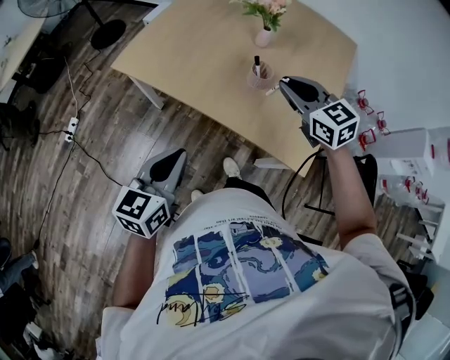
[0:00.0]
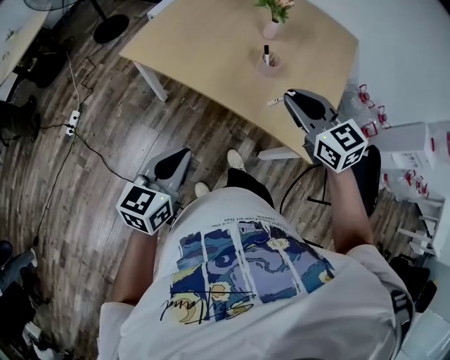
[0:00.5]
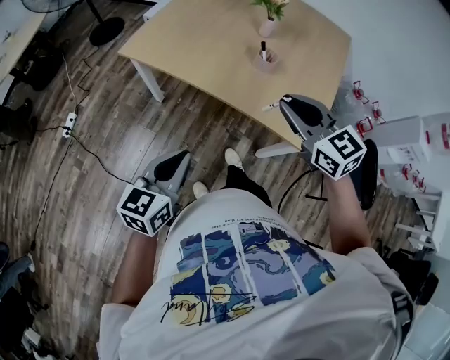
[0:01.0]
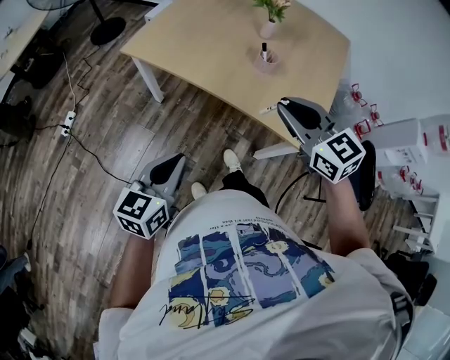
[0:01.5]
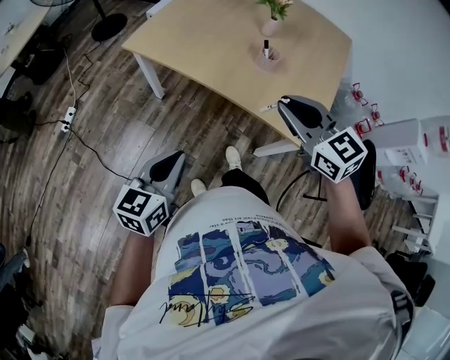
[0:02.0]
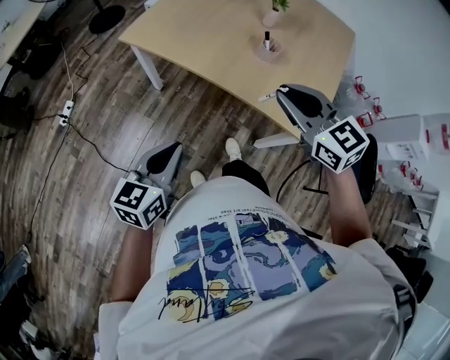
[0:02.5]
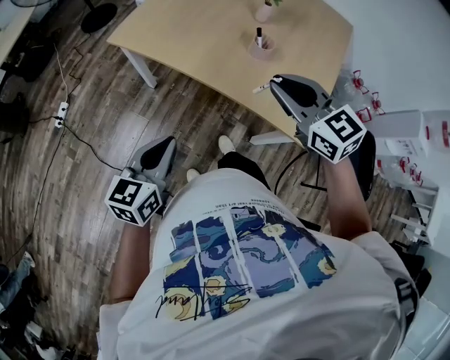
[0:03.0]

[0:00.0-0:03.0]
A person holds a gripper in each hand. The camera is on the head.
0:00.0 to 0:01.5: The left gripper goes approximately 10 cm backward and to the left. Meanwhile the right gripper shifts approximately 20 cm backward and to the left.
0:01.5 to 0:03.0: The right gripper moves forward, roughly 5 cm. The left gripper ends up about 5 cm from where it was.

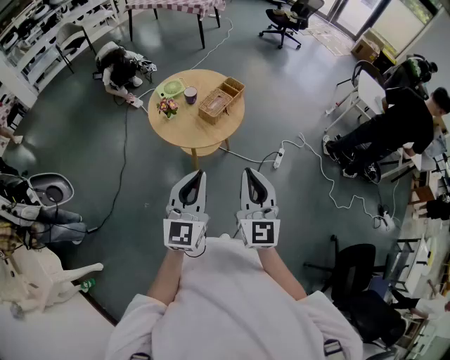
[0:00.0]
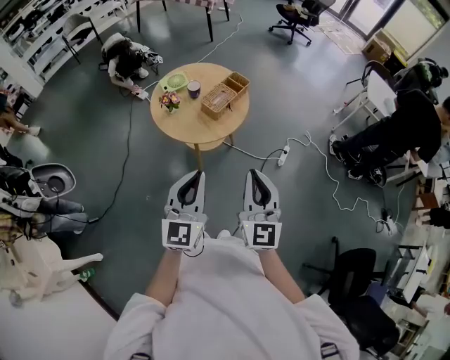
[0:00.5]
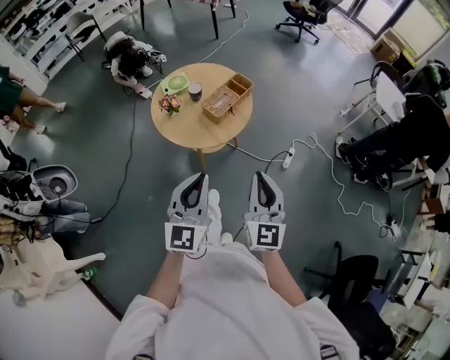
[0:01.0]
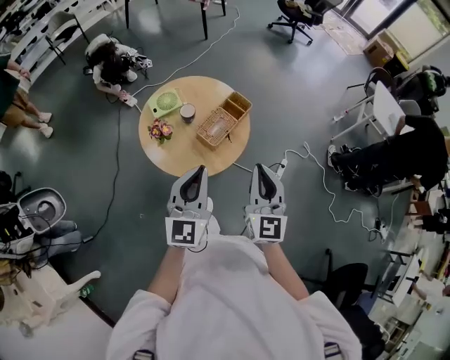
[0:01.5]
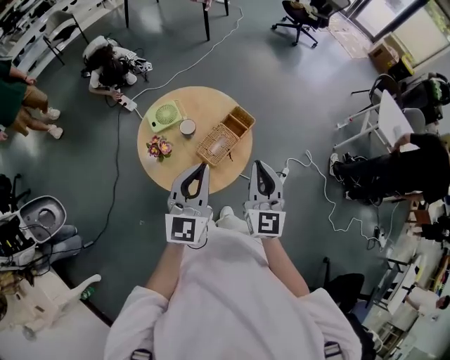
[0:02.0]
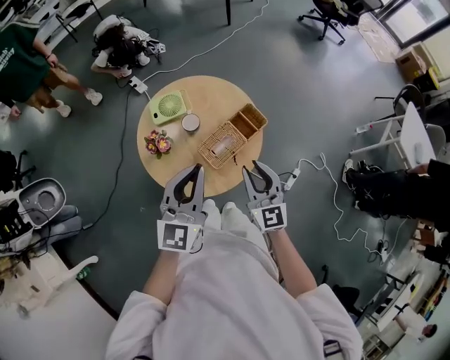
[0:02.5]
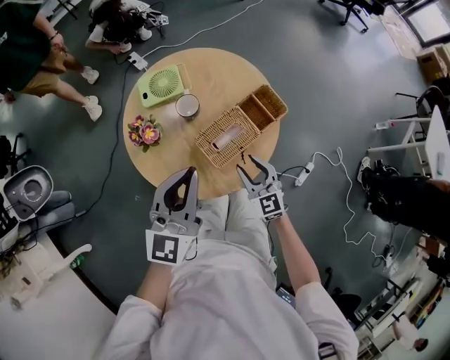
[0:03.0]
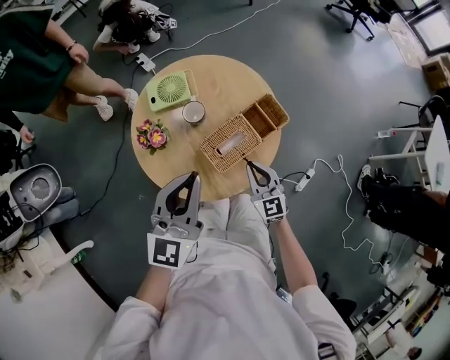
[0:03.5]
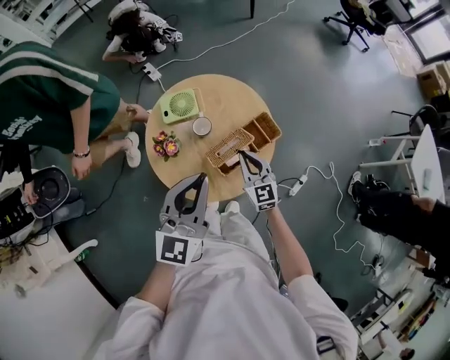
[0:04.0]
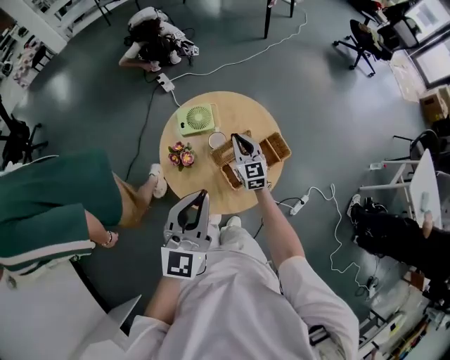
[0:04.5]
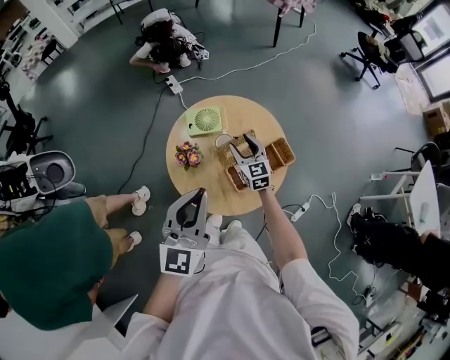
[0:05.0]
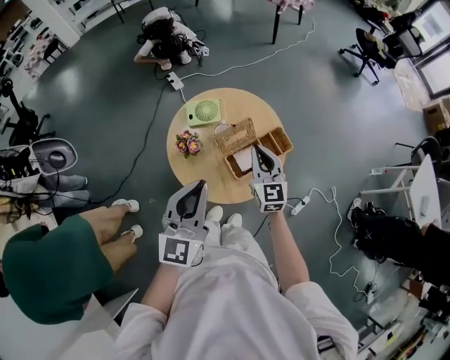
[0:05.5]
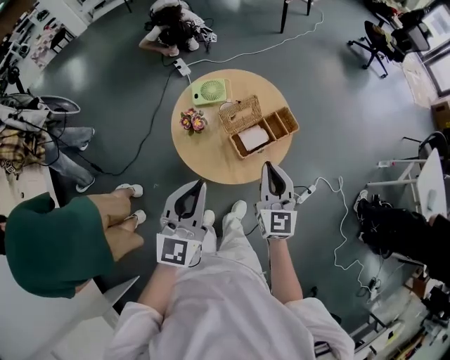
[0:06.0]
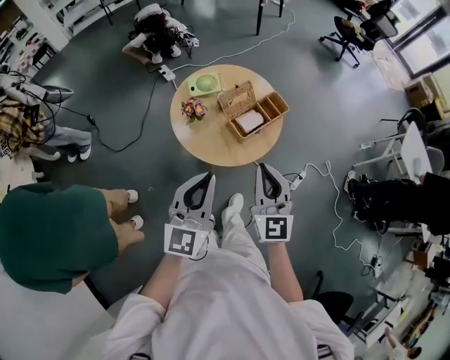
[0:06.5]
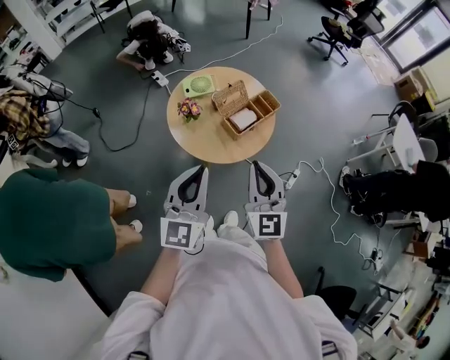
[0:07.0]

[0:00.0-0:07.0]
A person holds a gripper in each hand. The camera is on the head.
0:00.0 to 0:02.0: Both grippers travel together forward, some 35 cm.
0:02.0 to 0:03.5: The right gripper is displaced downward by about 35 cm, changes its angle by about 40 degrees, and opens, then closes once more. Meanwhile the left gripper shifts some 15 cm downward and forward.
0:03.5 to 0:05.0: The left gripper shifts approximately 15 cm upward and to the left, while the right gripper shifts some 25 cm forward, to the left and upward, and opens its fingers.
0:05.0 to 0:07.0: The right gripper is displaced backward and upward by about 50 cm, changes its angle by approximately 30 degrees, and closes, while the left gripper shifts some 20 cm backward.

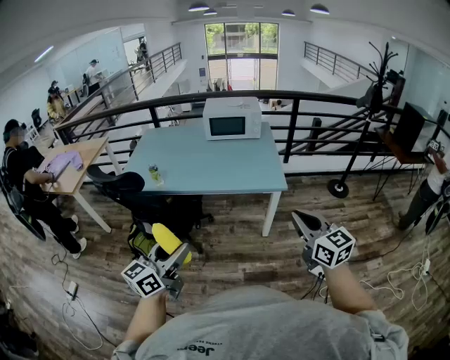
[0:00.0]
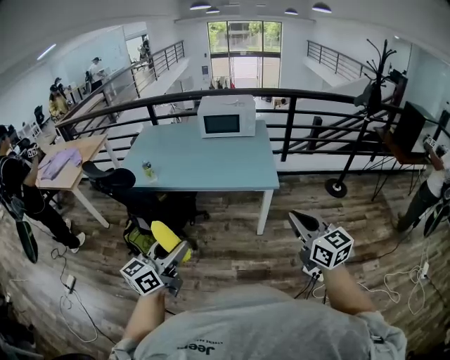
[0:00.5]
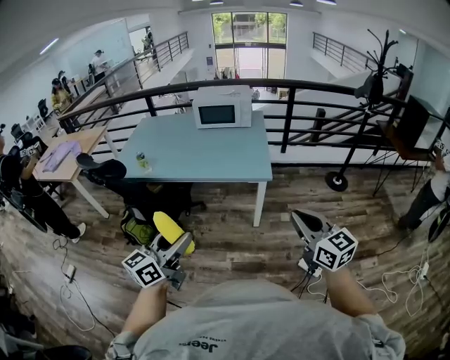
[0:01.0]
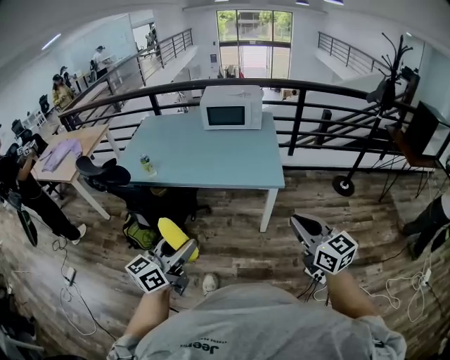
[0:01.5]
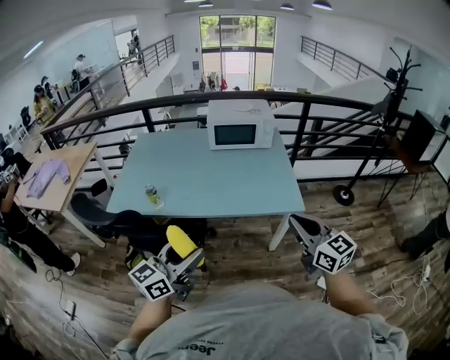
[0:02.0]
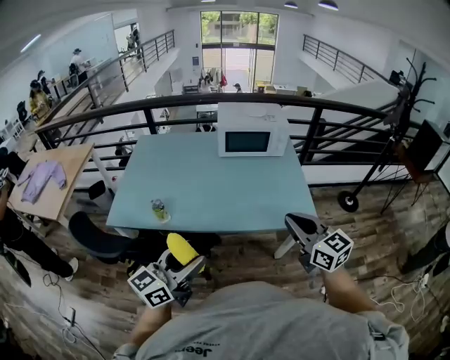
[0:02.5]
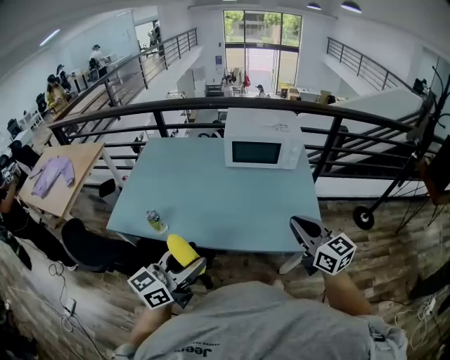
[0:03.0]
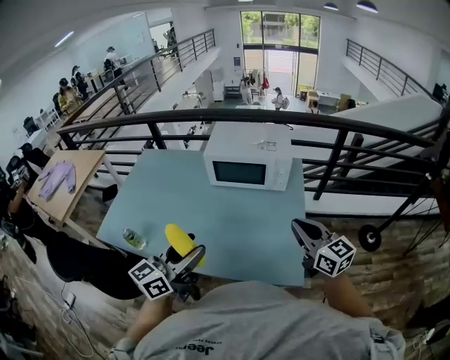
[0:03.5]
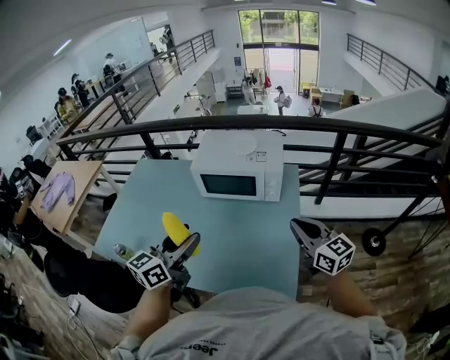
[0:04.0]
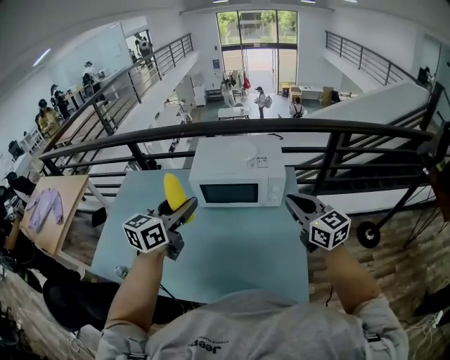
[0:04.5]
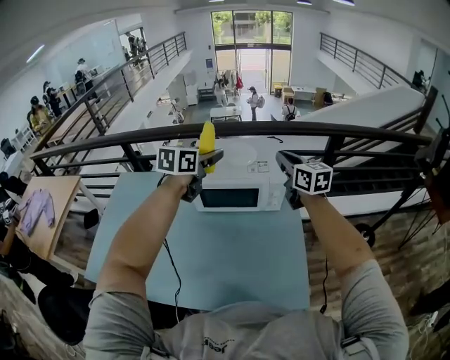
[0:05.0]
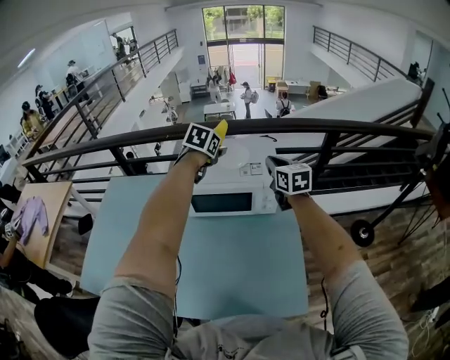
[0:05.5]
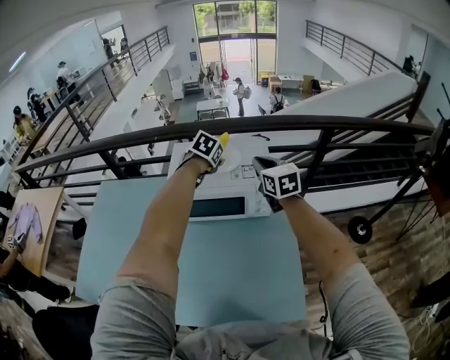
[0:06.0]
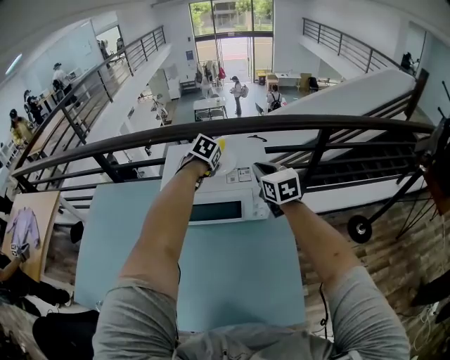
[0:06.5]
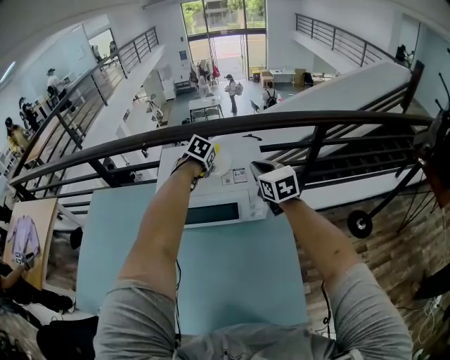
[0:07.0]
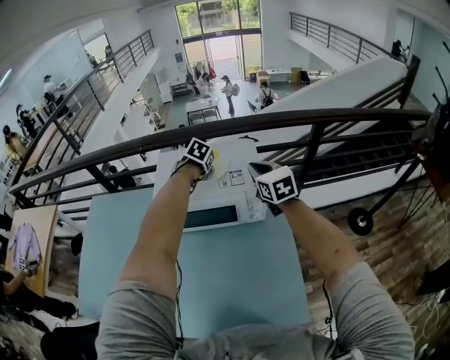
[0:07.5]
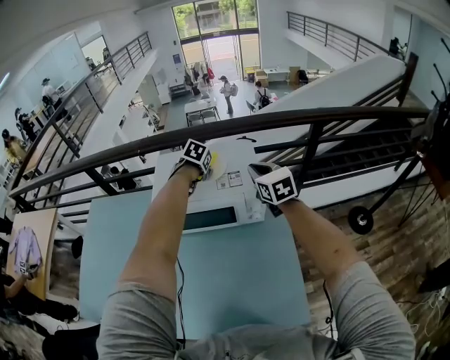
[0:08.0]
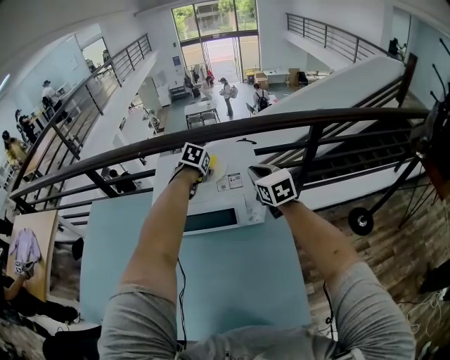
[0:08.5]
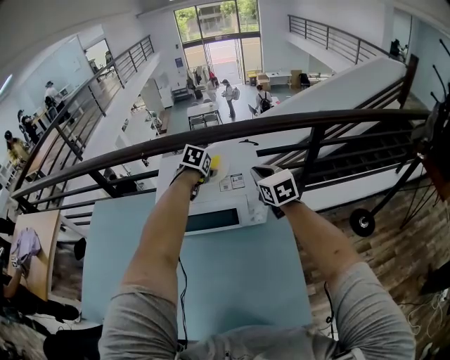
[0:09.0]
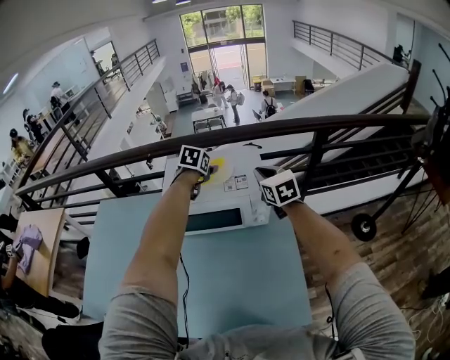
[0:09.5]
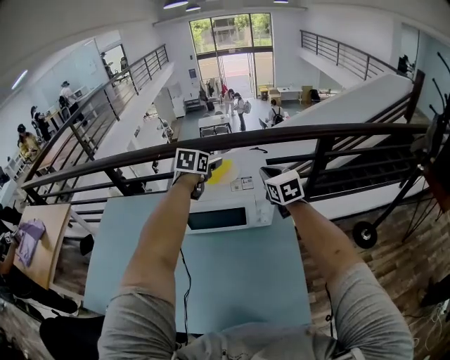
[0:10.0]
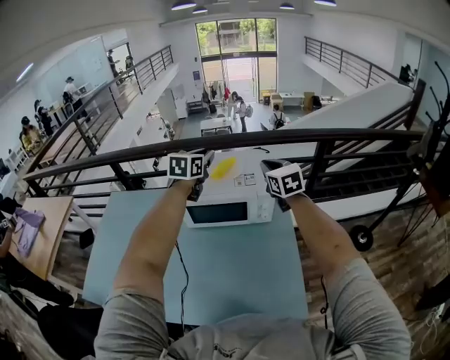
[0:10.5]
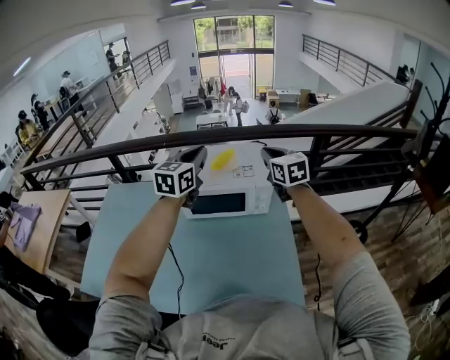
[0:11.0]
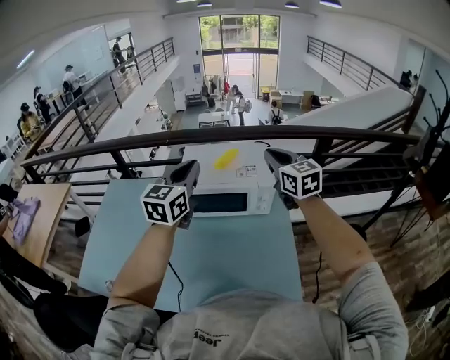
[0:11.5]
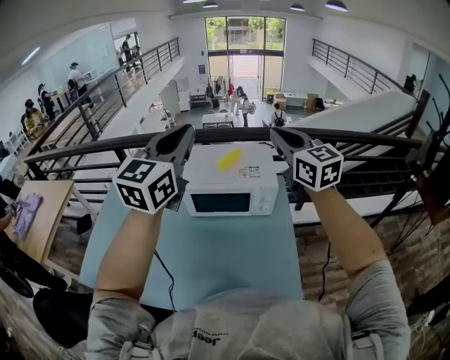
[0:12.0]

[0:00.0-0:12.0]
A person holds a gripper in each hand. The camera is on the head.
0:00.0 to 0:02.0: The right gripper heads forward and to the left, covering approximately 20 cm. Meanwhile the left gripper travels forward by roughly 20 cm.
0:02.0 to 0:04.0: Both grippers are carried forward, some 50 cm.
0:04.0 to 0:06.0: The grippers both shift forward by some 40 cm. The right gripper rotates about 20 degrees. The left gripper tips its fingers downward by some 50 degrees.
0:06.0 to 0:08.0: The right gripper ends up approximately 5 cm from where it was. The left gripper travels downward by some 5 cm.
0:08.0 to 0:10.0: The left gripper heads upward, covering some 15 cm, and points its fingers some 30 degrees further upward; the right gripper ends up some 5 cm from where it was.
0:10.0 to 0:12.0: The left gripper is displaced backward and upward by some 40 cm, angles its fingers upward, by approximately 40 degrees, and closes. Meanwhile the right gripper goes some 25 cm upward and backward, and swivels approximately 20 degrees.

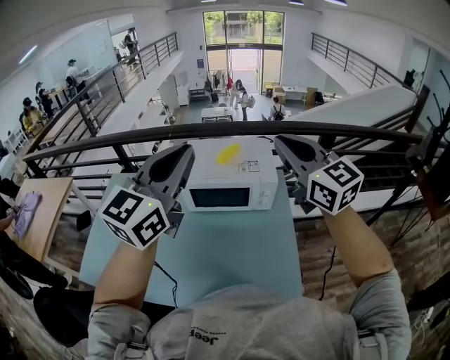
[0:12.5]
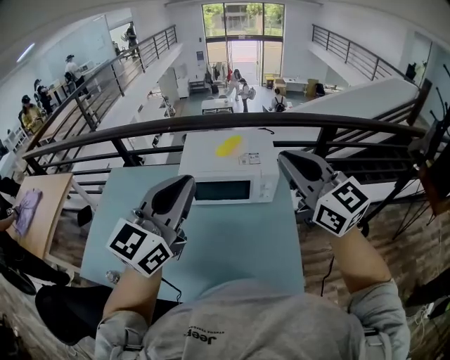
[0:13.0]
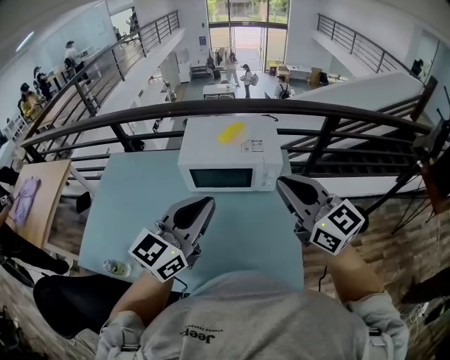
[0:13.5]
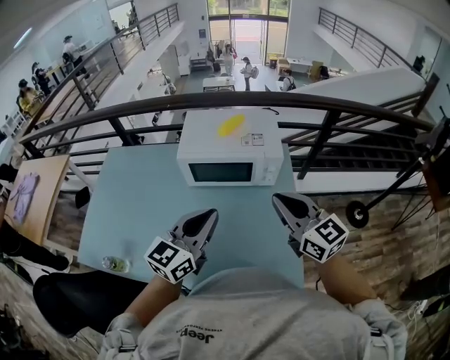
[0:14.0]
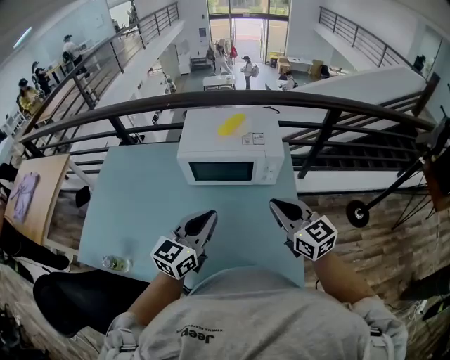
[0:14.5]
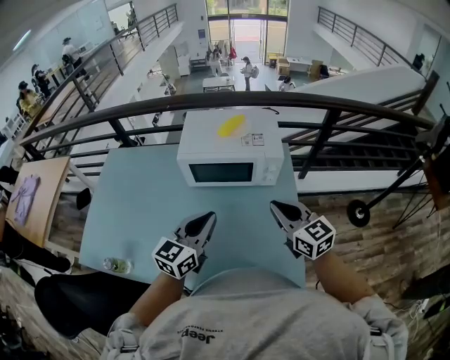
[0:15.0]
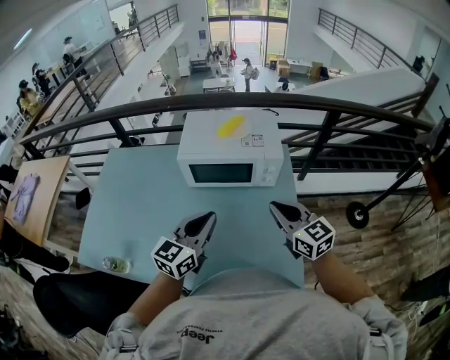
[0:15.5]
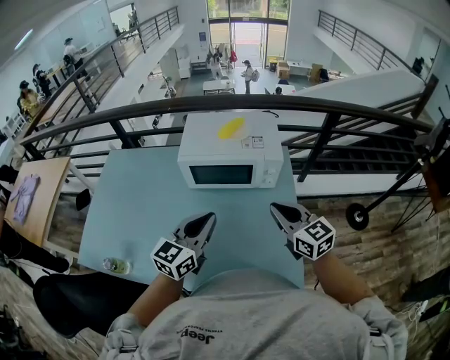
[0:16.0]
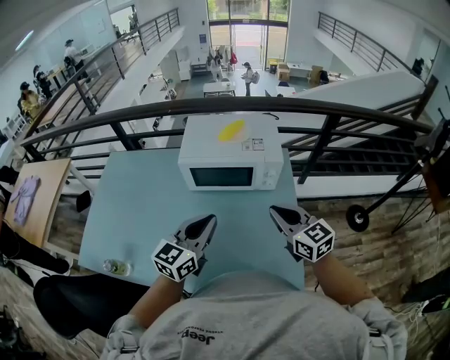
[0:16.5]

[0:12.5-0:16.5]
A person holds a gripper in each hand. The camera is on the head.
0:12.5 to 0:14.5: Both grippers travel together downward, approximately 25 cm. The left gripper rotates roughly 20 degrees.
0:14.5 to 0:16.5: There are only small adjustments of the grippers.
